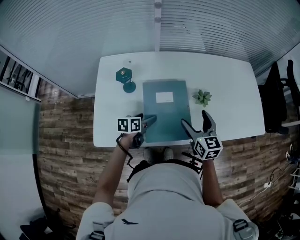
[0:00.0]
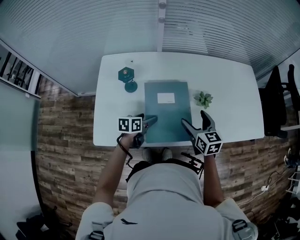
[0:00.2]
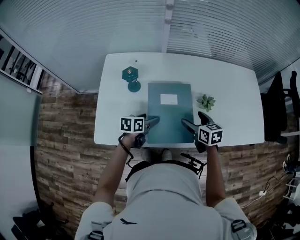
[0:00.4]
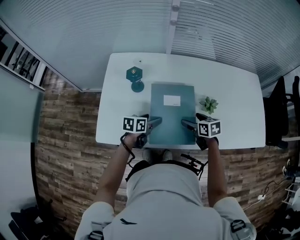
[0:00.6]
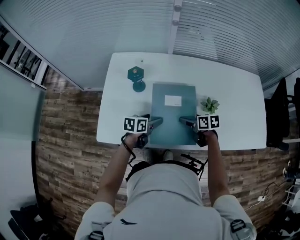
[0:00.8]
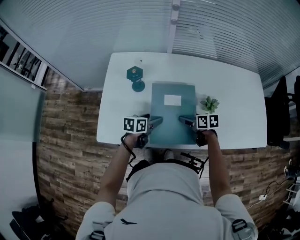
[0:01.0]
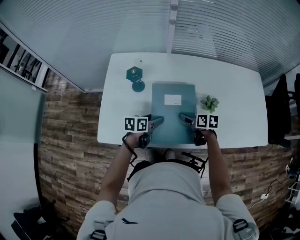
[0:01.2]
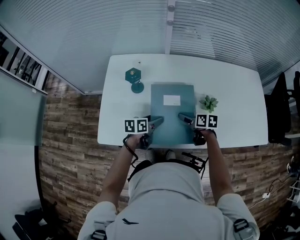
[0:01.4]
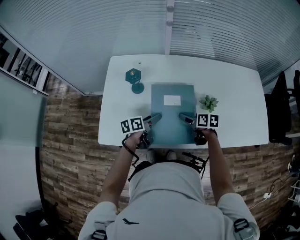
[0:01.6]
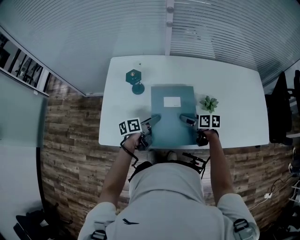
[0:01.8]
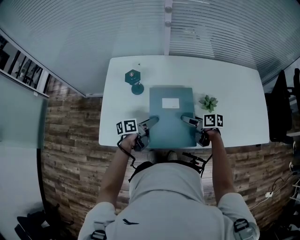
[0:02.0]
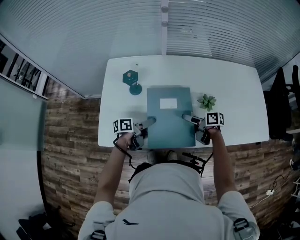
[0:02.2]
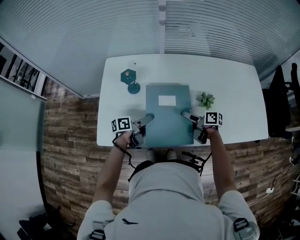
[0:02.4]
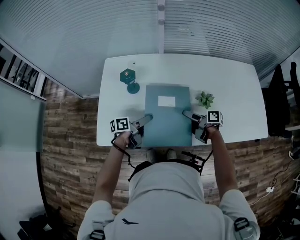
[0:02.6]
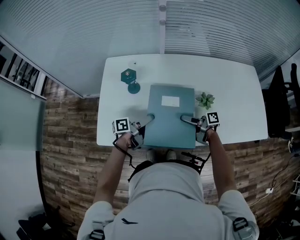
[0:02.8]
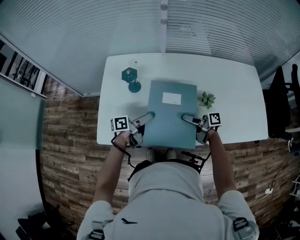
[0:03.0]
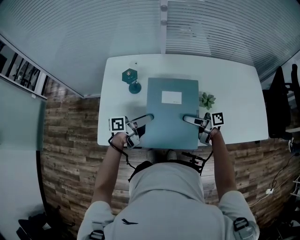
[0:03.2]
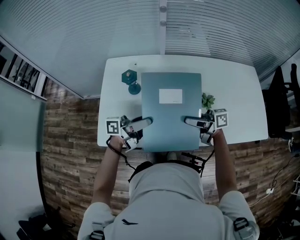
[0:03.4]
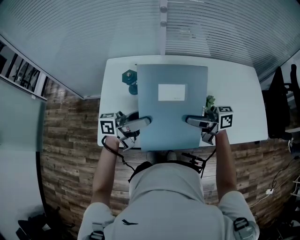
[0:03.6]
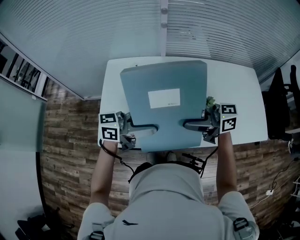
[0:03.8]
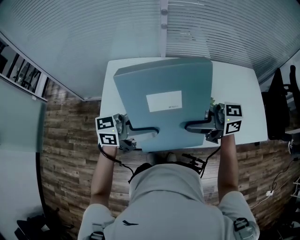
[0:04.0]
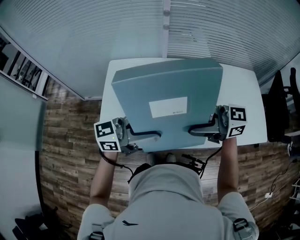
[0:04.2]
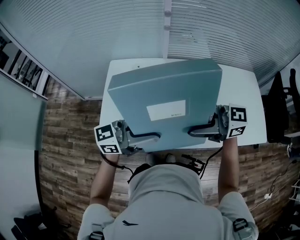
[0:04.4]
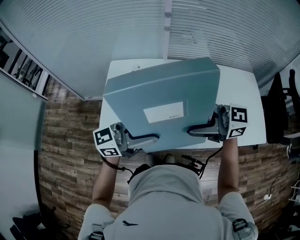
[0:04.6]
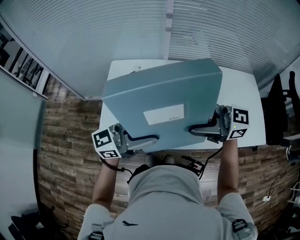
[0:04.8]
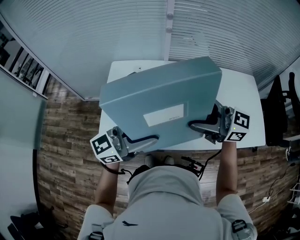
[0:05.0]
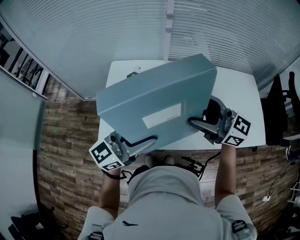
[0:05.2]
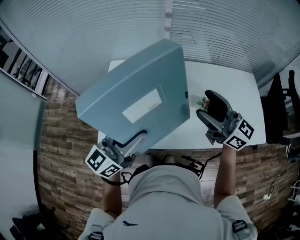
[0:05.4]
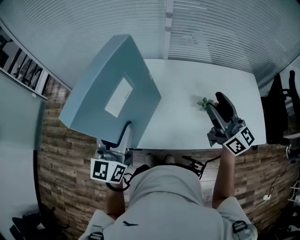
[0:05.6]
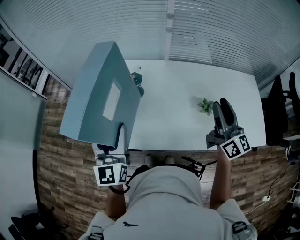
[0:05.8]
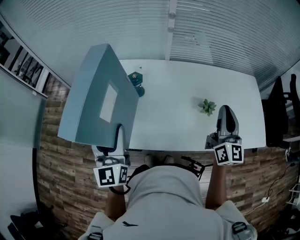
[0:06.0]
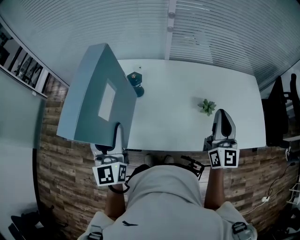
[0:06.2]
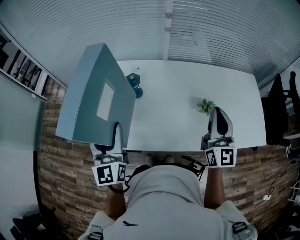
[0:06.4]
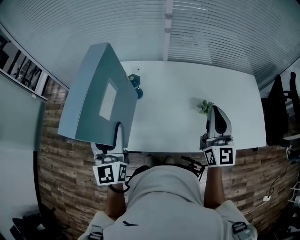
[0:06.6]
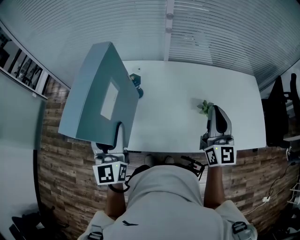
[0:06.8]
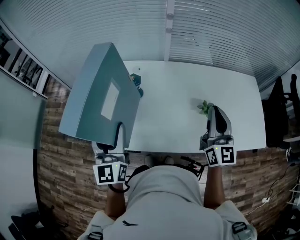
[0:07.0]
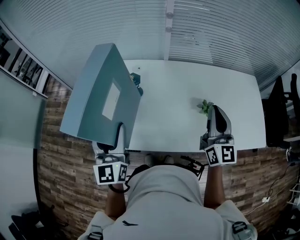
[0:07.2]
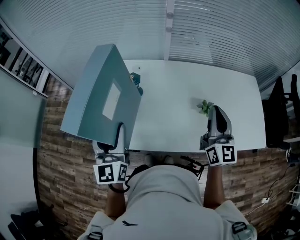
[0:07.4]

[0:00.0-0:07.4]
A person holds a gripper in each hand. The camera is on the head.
0.0 to 1.4 s: The right gripper travels downward by approximately 15 cm, and swivels roughly 40 degrees.
1.4 to 3.0 s: Both grippers move upward, approximately 5 cm. The right gripper tilts its fingers roughly 40 degrees upward. Meanwhile the left gripper changes its angle by roughly 30 degrees.
3.0 to 4.4 s: Both grippers move upward, about 25 cm. The left gripper twists roughly 50 degrees clockwise, seen from behind. The right gripper rolls counterclockwise, seen from behind, by roughly 70 degrees.
4.4 to 6.0 s: The left gripper ends up approximately 15 cm from where it was, and rotates roughly 80 degrees, while the right gripper changes place by some 15 cm, changes its angle by roughly 80 degrees, and closes its fingers.
6.0 to 7.4 s: The grippers make only small movements.

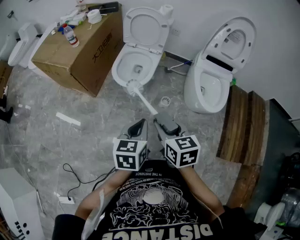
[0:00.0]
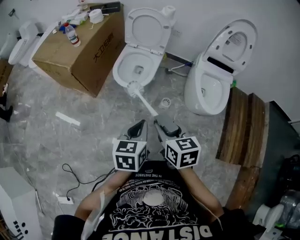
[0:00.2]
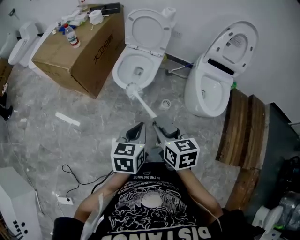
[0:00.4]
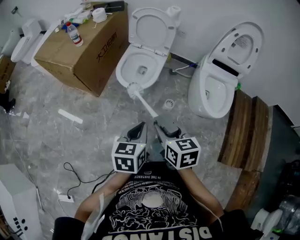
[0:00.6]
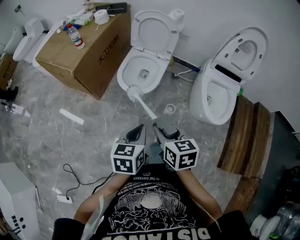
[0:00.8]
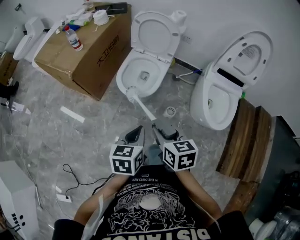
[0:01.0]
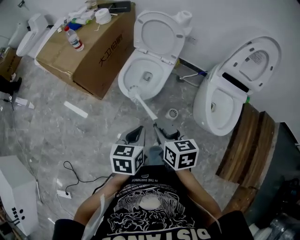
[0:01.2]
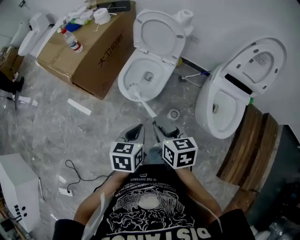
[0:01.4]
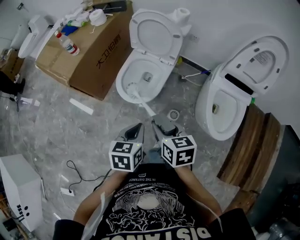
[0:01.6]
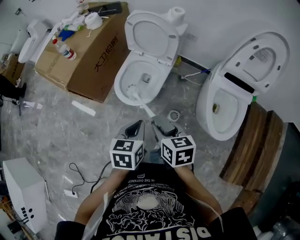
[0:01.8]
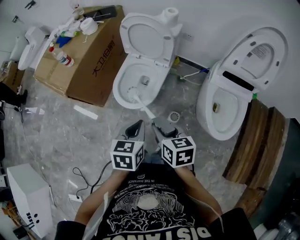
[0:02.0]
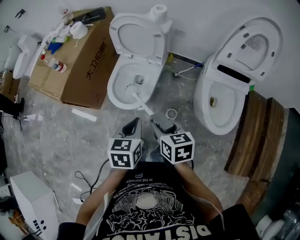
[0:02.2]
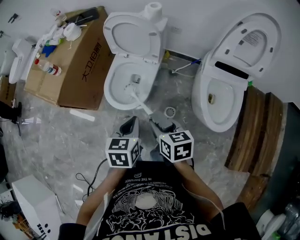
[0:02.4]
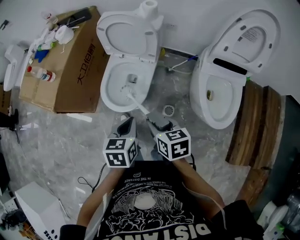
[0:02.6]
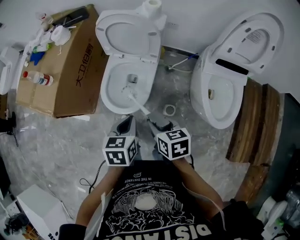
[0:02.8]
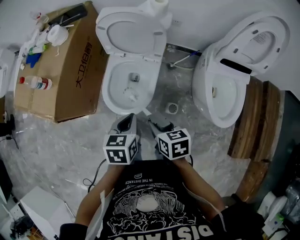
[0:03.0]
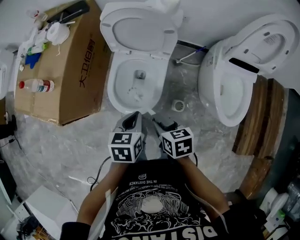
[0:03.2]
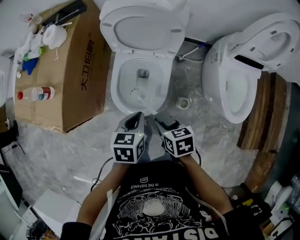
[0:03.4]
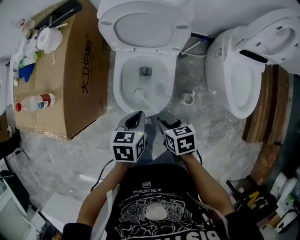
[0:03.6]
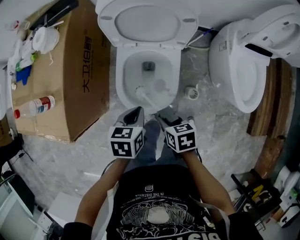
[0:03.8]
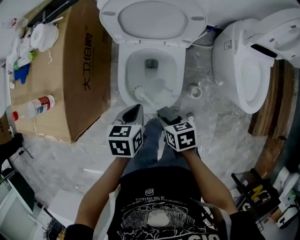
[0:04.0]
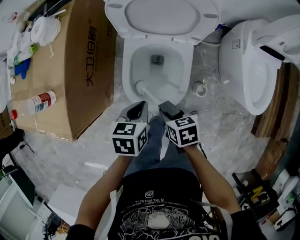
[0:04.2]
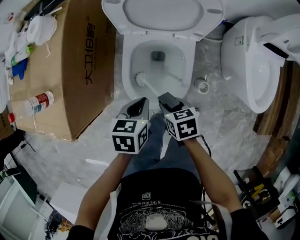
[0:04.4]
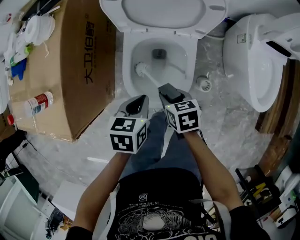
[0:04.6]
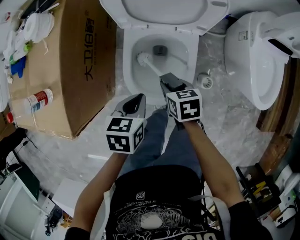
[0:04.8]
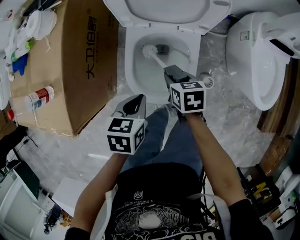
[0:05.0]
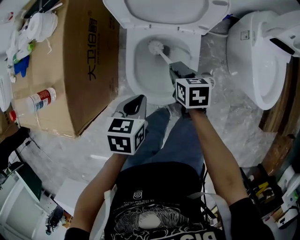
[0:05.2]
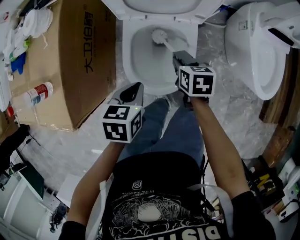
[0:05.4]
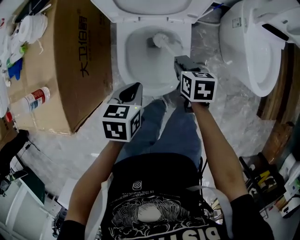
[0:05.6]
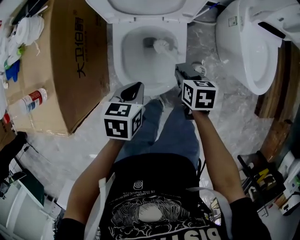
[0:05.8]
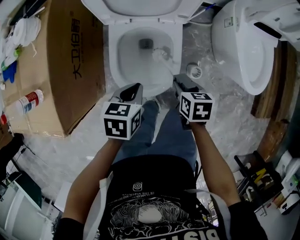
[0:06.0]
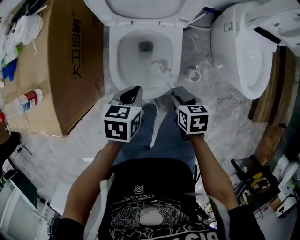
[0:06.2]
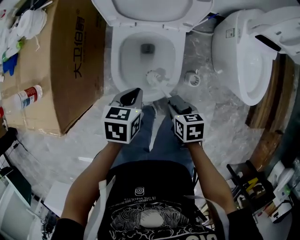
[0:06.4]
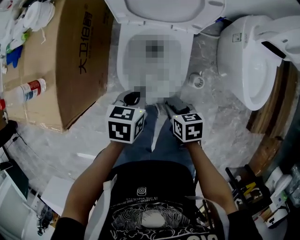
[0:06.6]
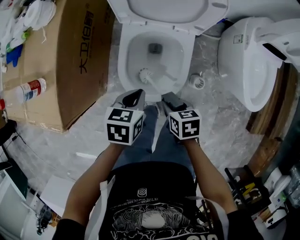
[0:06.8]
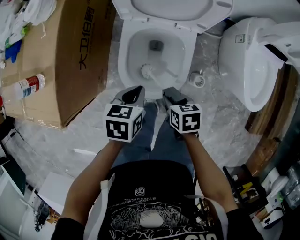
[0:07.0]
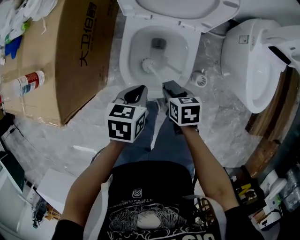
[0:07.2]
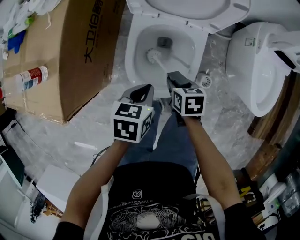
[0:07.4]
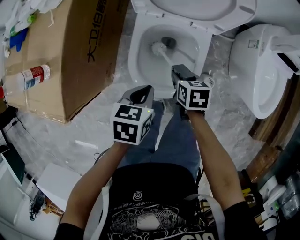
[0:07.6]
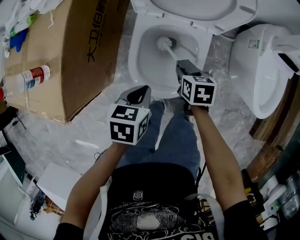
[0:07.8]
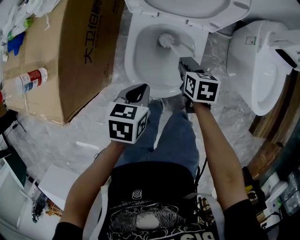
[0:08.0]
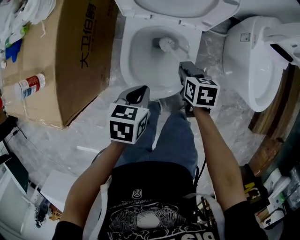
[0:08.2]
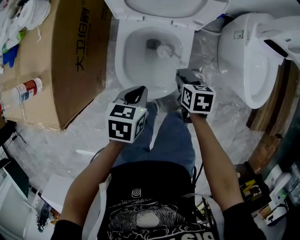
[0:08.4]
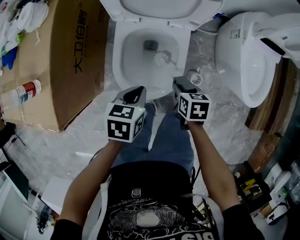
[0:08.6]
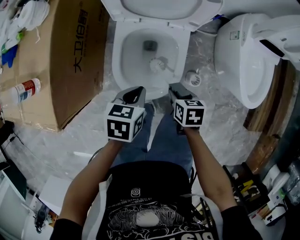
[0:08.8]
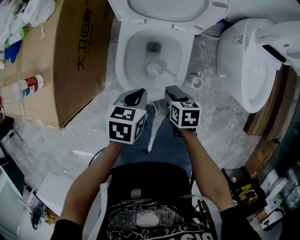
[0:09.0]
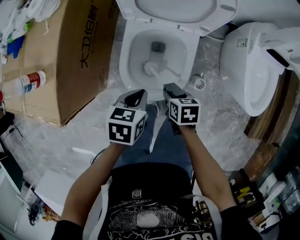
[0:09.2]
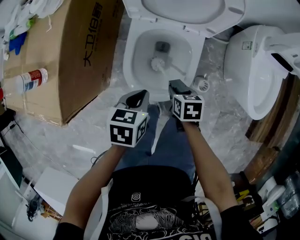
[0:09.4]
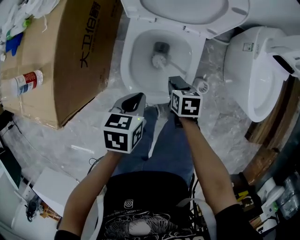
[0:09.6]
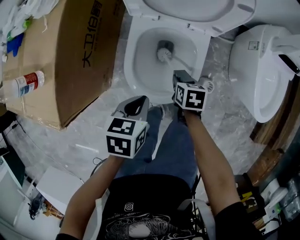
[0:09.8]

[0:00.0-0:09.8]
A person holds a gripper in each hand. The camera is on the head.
0.0 to 1.4 s: Both grippers move forward, some 15 cm.
1.4 to 2.8 s: The left gripper shifts approximately 15 cm forward. The right gripper is displaced forward and downward by some 10 cm.
2.8 to 4.2 s: The left gripper heads to the left, forward and downward, covering some 25 cm, while the right gripper is displaced downward, to the left and forward by about 25 cm.
4.2 to 5.6 s: The right gripper shifts about 15 cm forward and to the right.
5.6 to 7.0 s: The right gripper moves backward, roughly 10 cm.
7.0 to 8.4 s: The right gripper travels forward and to the right by about 10 cm.
8.4 to 9.8 s: The right gripper heads downward and to the left, covering about 10 cm.

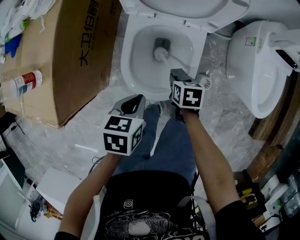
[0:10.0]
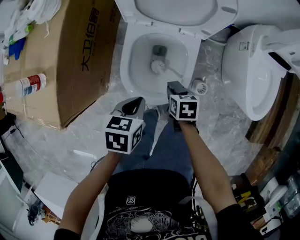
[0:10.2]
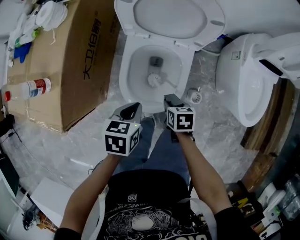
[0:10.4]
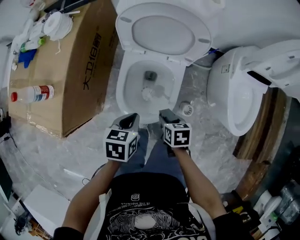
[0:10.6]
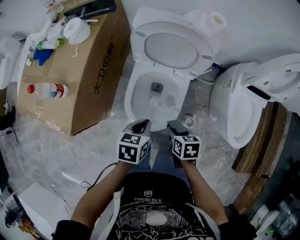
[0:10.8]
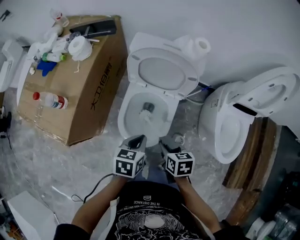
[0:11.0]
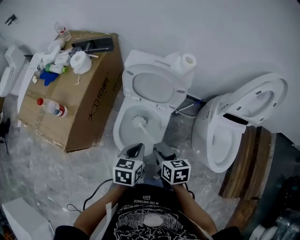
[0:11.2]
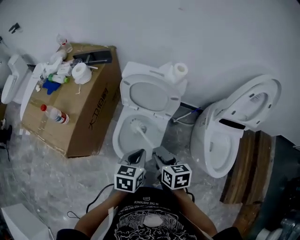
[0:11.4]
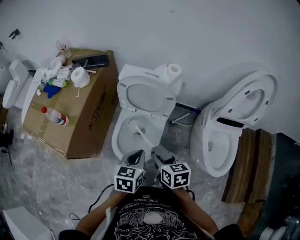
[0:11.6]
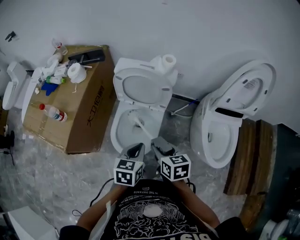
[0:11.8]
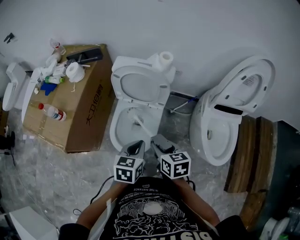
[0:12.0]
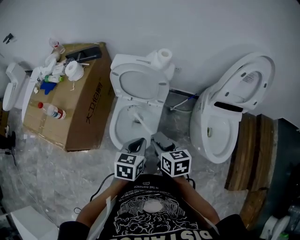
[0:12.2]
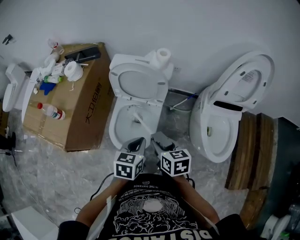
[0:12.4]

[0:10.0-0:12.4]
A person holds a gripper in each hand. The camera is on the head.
10.0 to 11.2 s: The right gripper moves upward, some 25 cm. Meanwhile the left gripper travels upward and to the right by roughly 15 cm, and rotates roughly 20 degrees.
11.2 to 12.4 s: The right gripper heads upward and to the right, covering about 10 cm. Meanwhile the left gripper goes roughly 5 cm to the right.

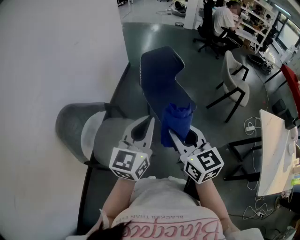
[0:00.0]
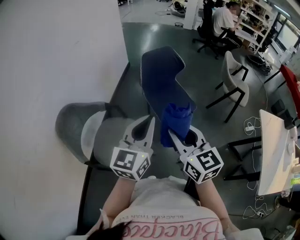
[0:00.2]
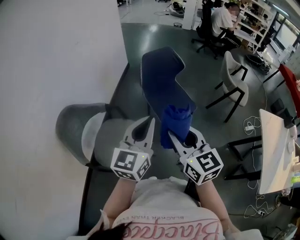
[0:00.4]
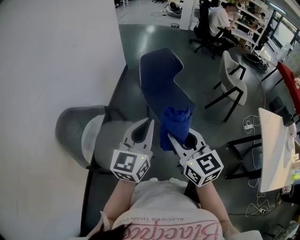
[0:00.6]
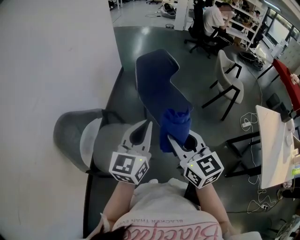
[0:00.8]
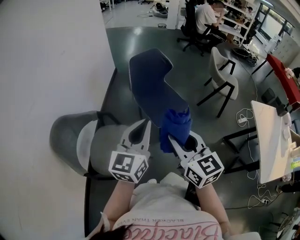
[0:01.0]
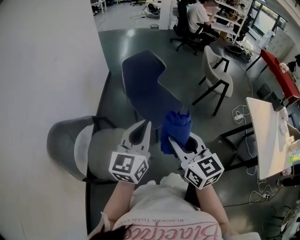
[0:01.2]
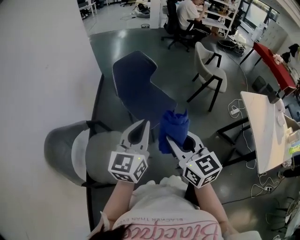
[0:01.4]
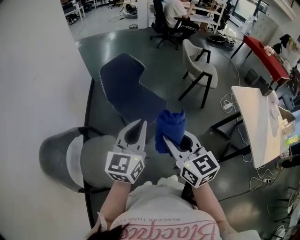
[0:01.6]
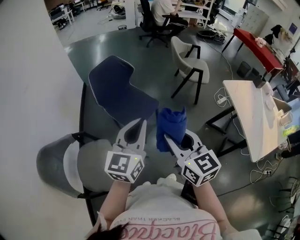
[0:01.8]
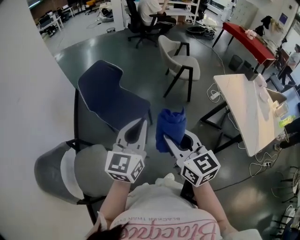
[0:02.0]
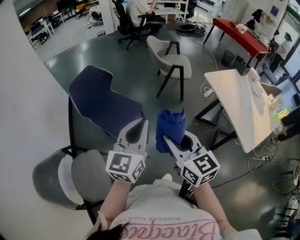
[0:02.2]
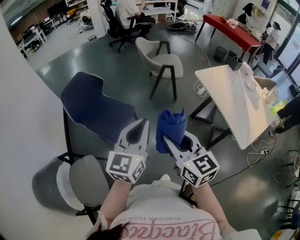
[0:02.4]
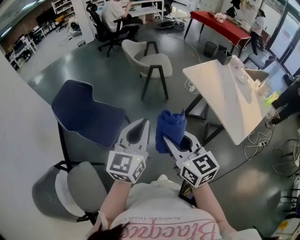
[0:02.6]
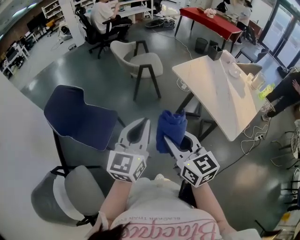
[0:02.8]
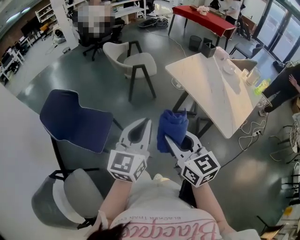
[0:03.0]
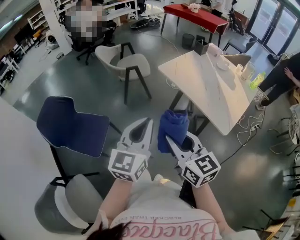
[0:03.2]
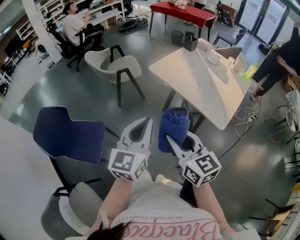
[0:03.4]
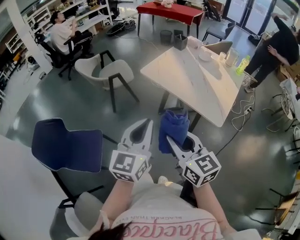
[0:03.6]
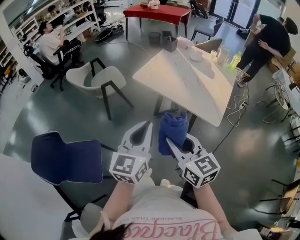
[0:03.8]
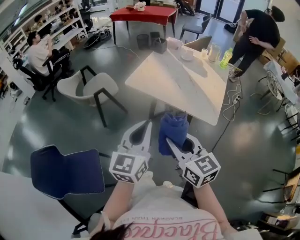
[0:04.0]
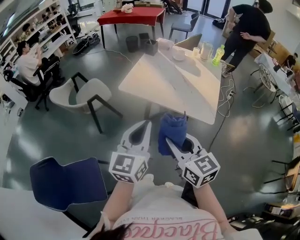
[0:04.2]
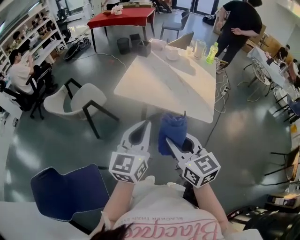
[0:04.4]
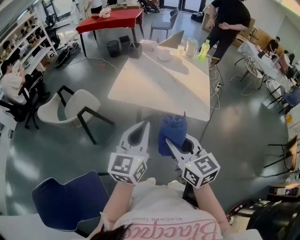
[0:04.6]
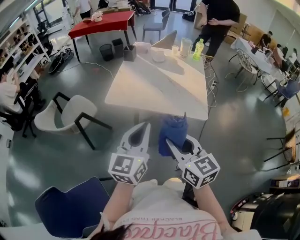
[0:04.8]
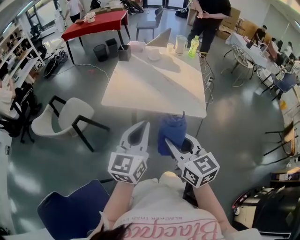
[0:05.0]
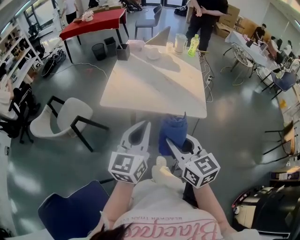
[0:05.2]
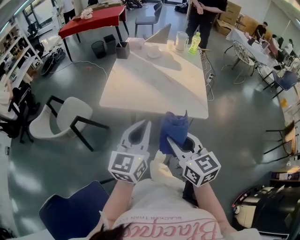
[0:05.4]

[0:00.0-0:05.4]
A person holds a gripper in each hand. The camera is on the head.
0.0 to 1.4 s: The grippers stay close to where they were, moving slightly.
1.4 to 2.8 s: The left gripper moves some 35 cm, and swivels some 30 degrees. The right gripper ends up approximately 35 cm from where it was, and swivels some 30 degrees.
2.8 to 4.0 s: The left gripper shifts by approximately 20 cm, and swivels about 30 degrees, while the right gripper ends up approximately 15 cm from where it was, and turns by about 30 degrees.
4.0 to 5.4 s: The grippers both shift forward by roughly 10 cm. The right gripper rotates approximately 20 degrees; the left gripper rotates approximately 20 degrees.
